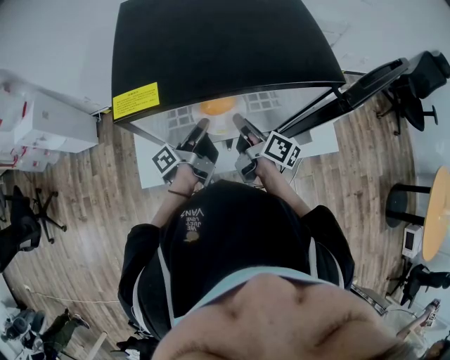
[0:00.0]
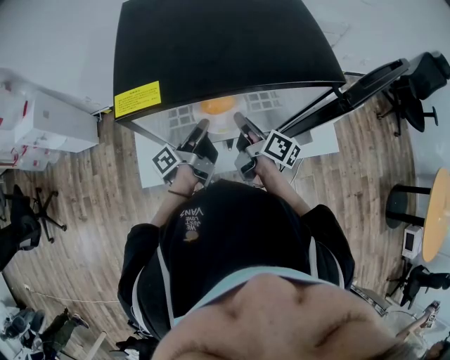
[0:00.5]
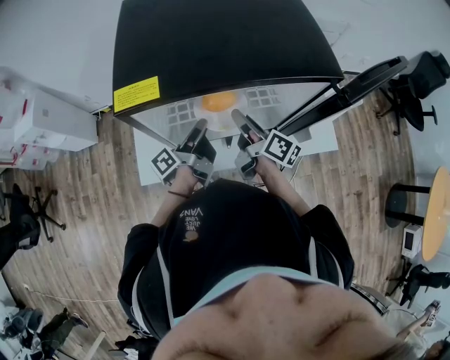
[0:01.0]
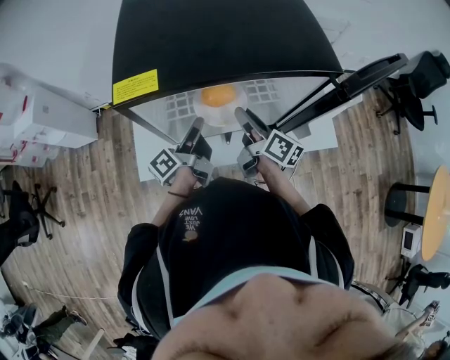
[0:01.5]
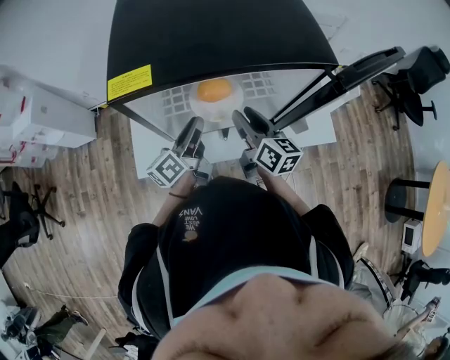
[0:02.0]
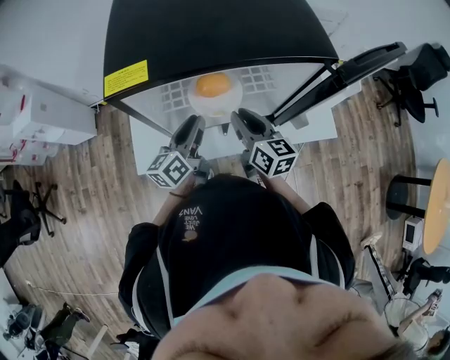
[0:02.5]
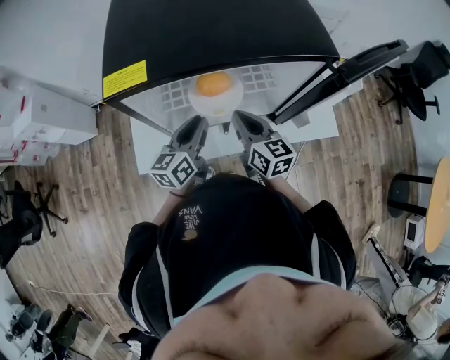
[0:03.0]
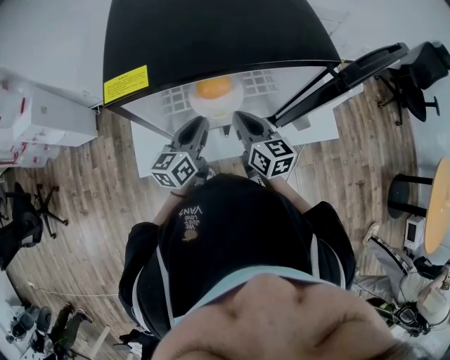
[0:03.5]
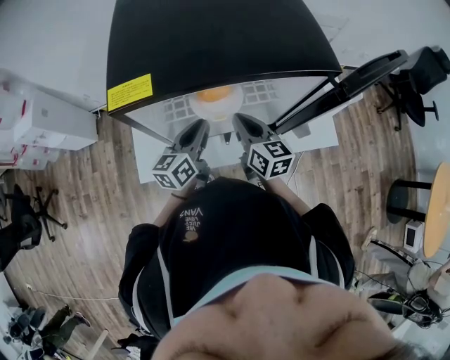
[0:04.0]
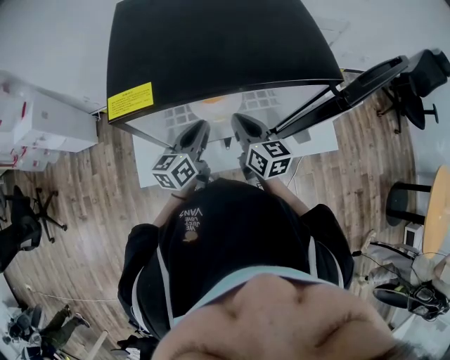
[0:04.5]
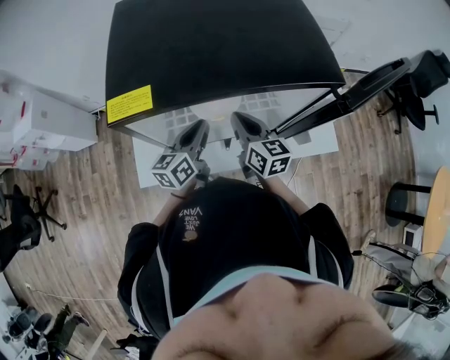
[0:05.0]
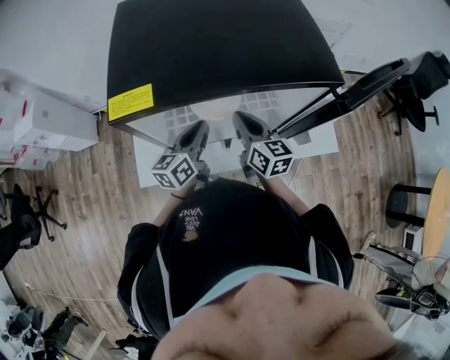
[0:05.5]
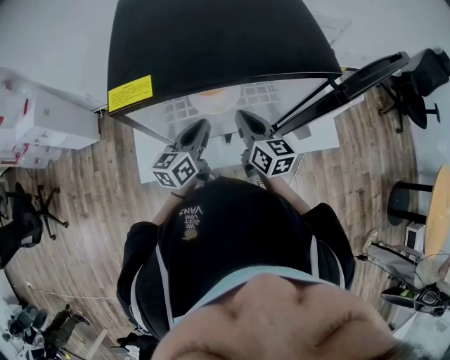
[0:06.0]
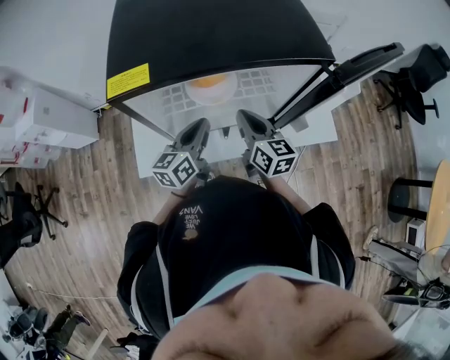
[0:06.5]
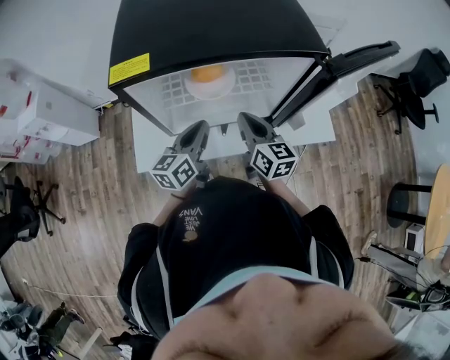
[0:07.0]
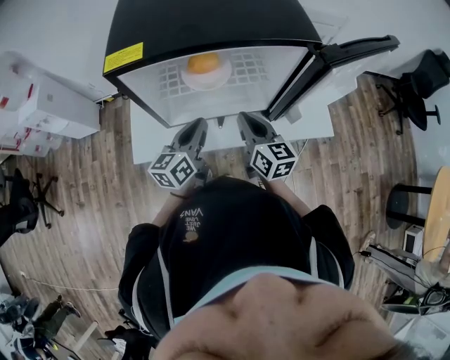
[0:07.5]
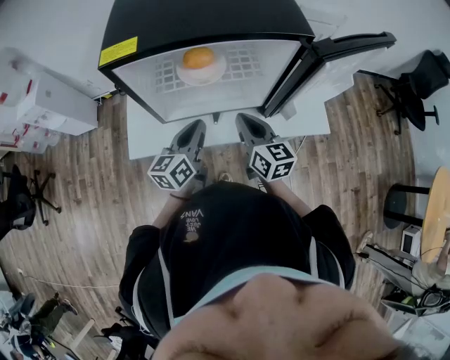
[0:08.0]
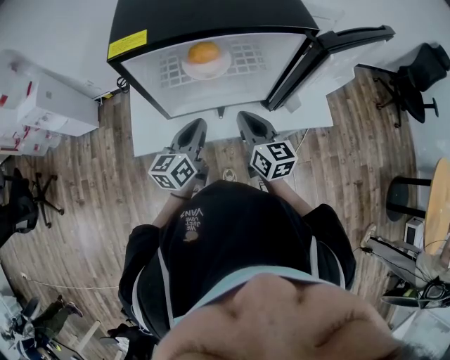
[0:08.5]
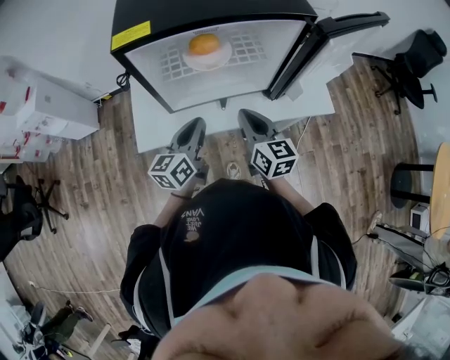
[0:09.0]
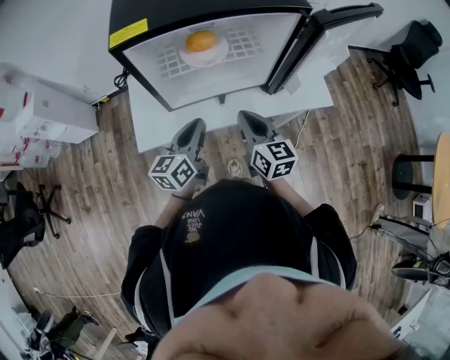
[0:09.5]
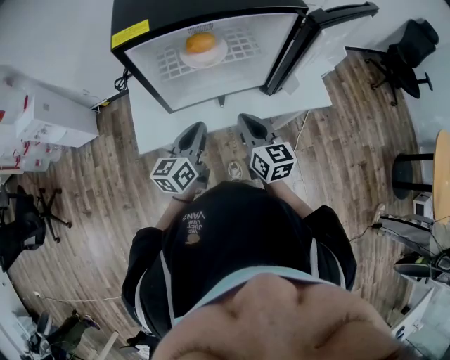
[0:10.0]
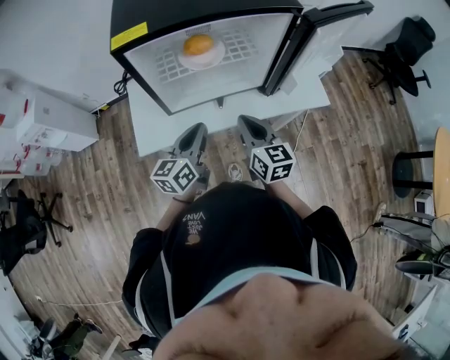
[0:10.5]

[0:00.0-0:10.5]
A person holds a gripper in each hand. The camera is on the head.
0:00.0 to 0:02.0: The right gripper changes its angle by approximately 30 degrees, and opens up; the left gripper rotates some 40 degrees.
0:02.0 to 0:04.0: The left gripper swivels approximately 30 degrees; the right gripper closes.
0:04.0 to 0:06.5: The grippers move only a little.
0:06.5 to 0:08.5: The grippers both shift backward by about 10 cm.
0:08.5 to 0:10.5: Both grippers move backward, about 5 cm.

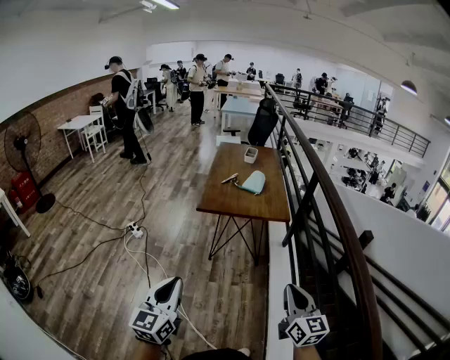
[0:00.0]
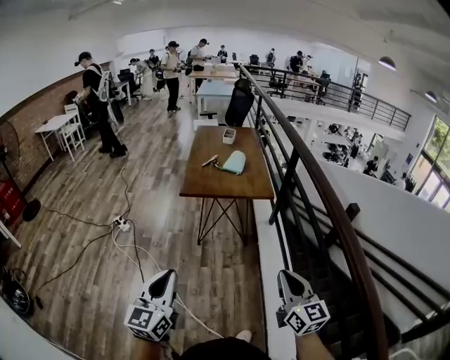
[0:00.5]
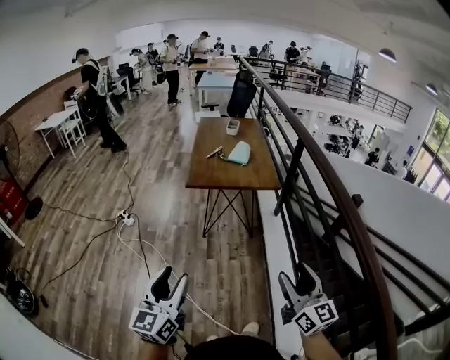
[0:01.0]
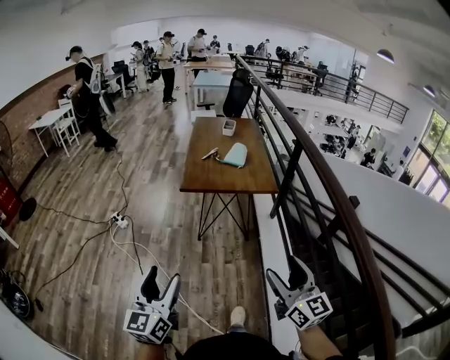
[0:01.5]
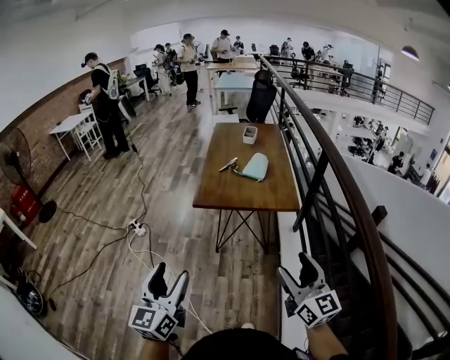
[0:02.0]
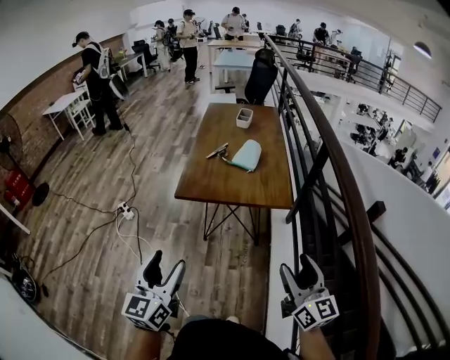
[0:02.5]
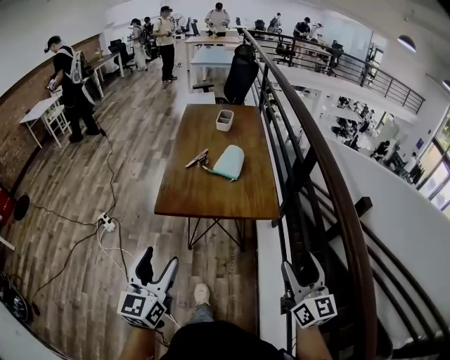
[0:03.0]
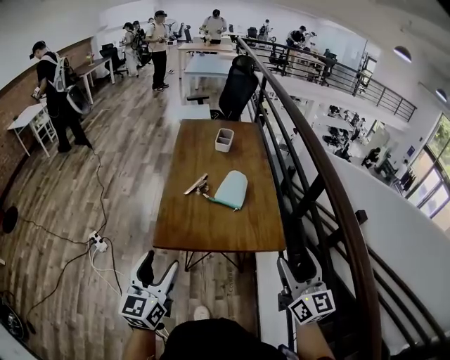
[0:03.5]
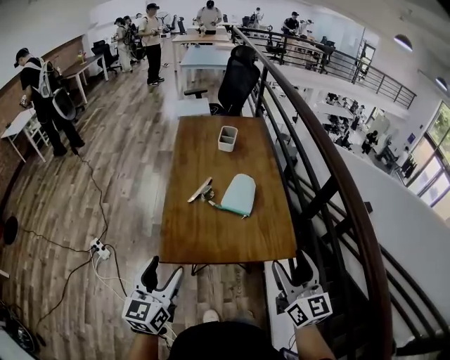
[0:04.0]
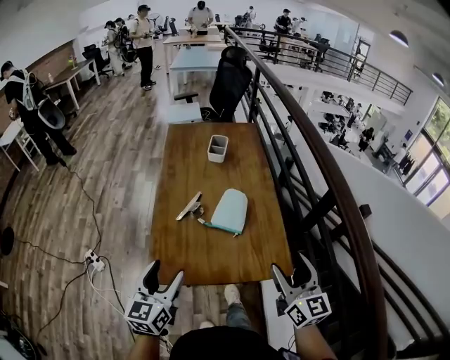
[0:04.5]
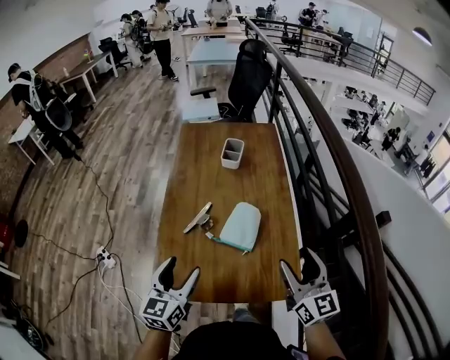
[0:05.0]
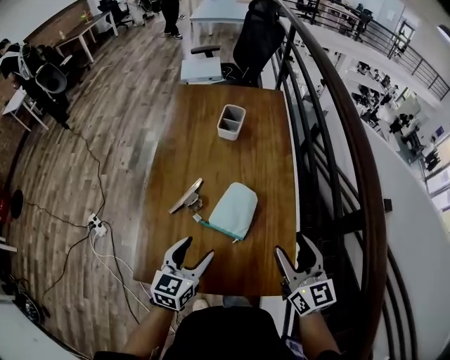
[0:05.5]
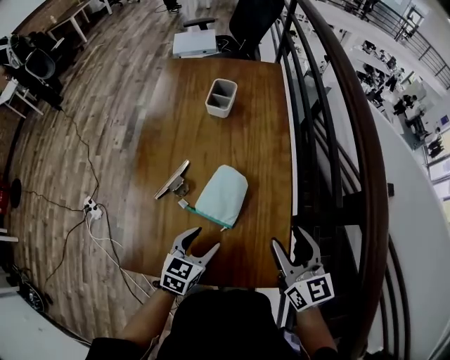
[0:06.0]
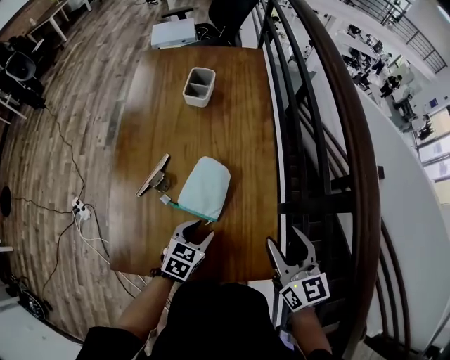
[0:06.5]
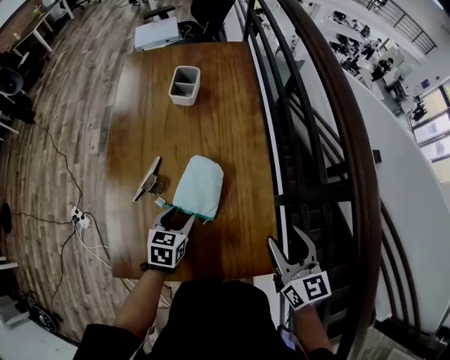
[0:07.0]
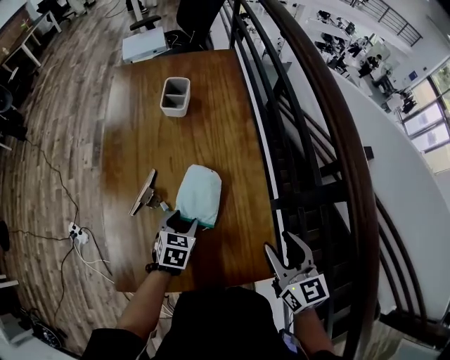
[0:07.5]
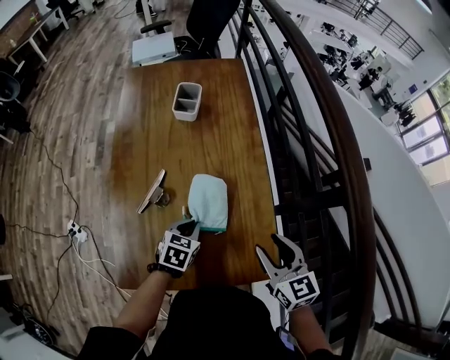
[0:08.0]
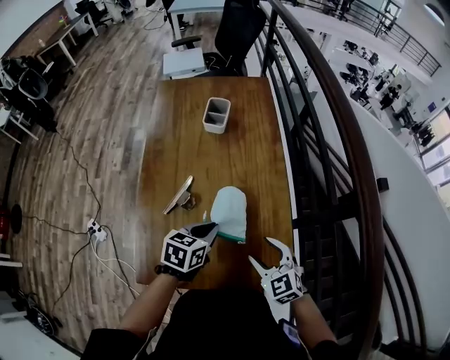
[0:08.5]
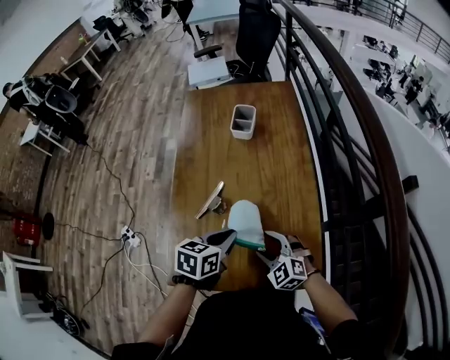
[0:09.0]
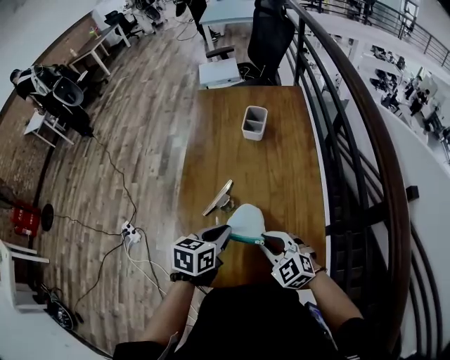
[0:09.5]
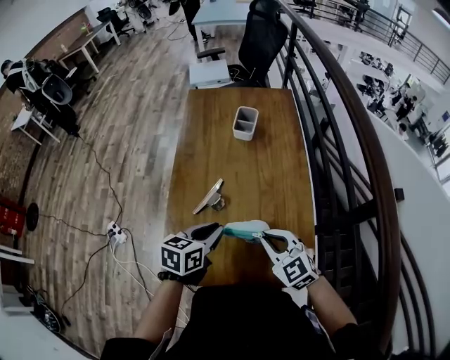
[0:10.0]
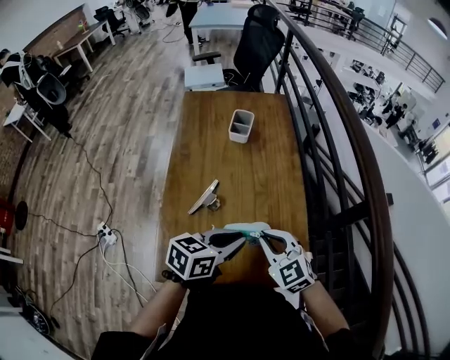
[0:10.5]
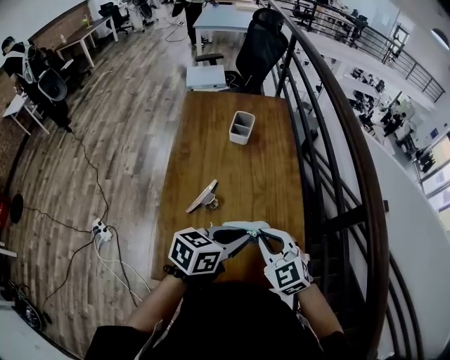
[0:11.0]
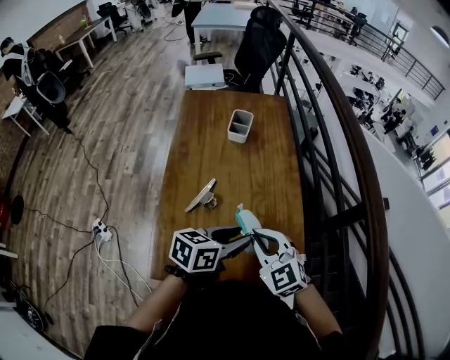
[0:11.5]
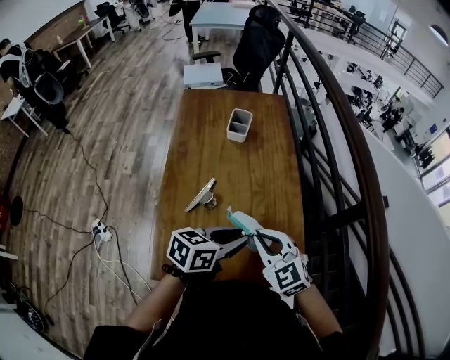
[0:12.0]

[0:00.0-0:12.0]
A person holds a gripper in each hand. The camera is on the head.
0:00.0 to 0:02.0: The two grippers go some 15 cm forward. The left gripper opens up, while the right gripper opens.
0:02.0 to 0:04.0: Both grippers travel together forward, approximately 35 cm.
0:04.0 to 0:06.0: The right gripper is displaced forward by some 25 cm. The left gripper shifts about 35 cm forward, to the right and downward, and swivels about 30 degrees.
0:06.0 to 0:08.0: The right gripper shifts by approximately 5 cm. The left gripper goes about 5 cm forward, and closes.
0:08.0 to 0:10.0: The left gripper travels upward and to the left by approximately 15 cm, and swivels roughly 30 degrees; the right gripper moves to the left, some 15 cm, turns by roughly 40 degrees, and closes.
0:10.0 to 0:12.0: The left gripper heads to the right, covering approximately 10 cm, and rotates approximately 20 degrees.

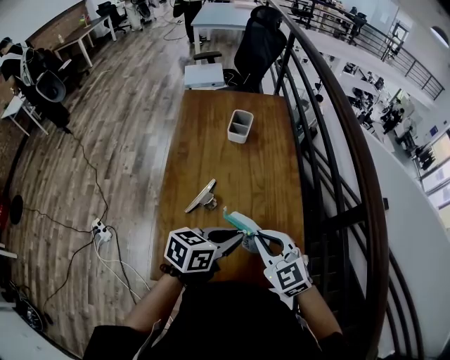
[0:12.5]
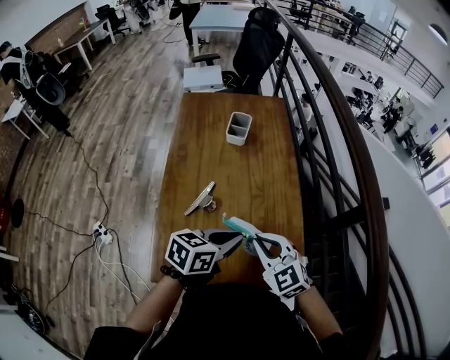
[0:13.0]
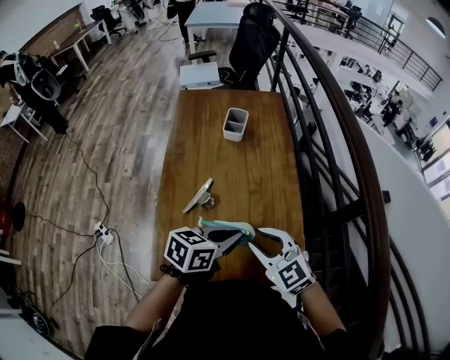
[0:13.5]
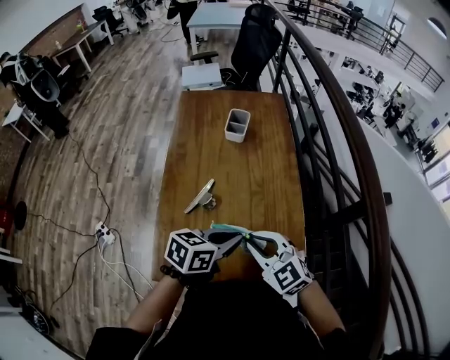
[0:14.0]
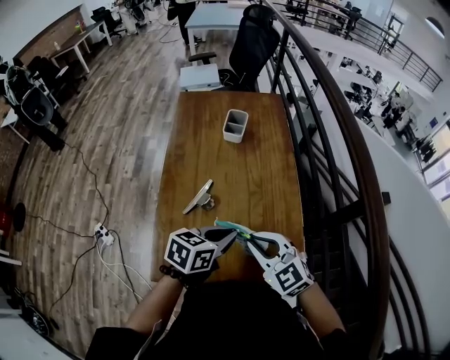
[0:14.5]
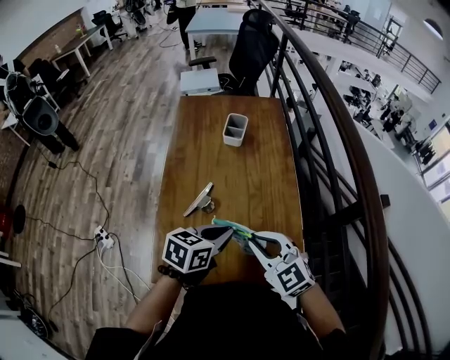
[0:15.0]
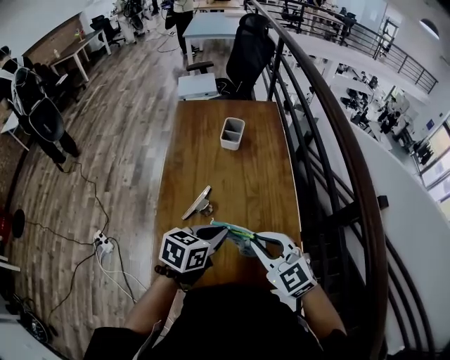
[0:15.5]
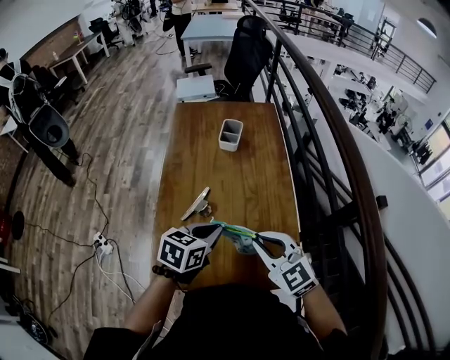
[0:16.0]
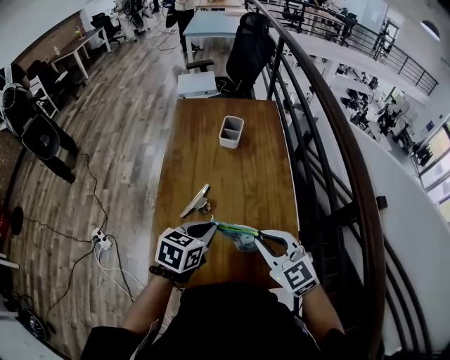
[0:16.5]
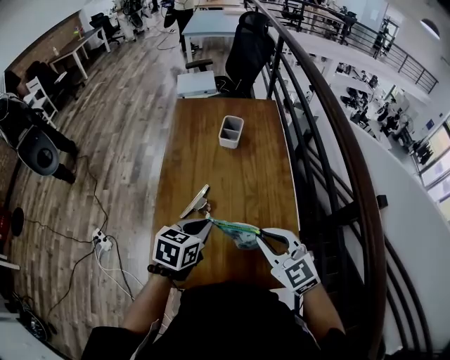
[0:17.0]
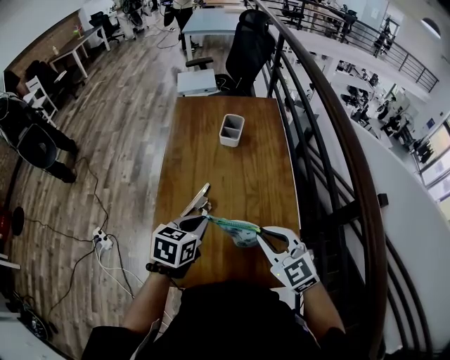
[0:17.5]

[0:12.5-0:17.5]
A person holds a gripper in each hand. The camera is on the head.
0:12.5 to 0:15.0: There are only small adjustments of the grippers.
0:15.0 to 0:17.5: The left gripper shifts roughly 5 cm to the left.
